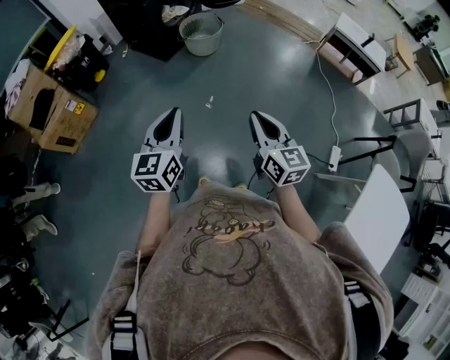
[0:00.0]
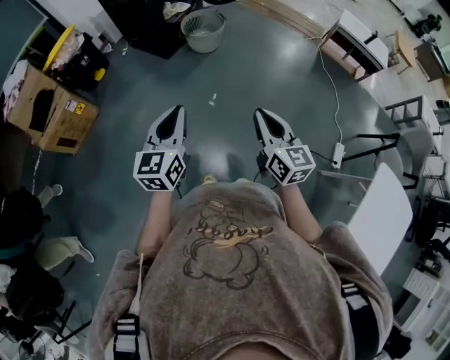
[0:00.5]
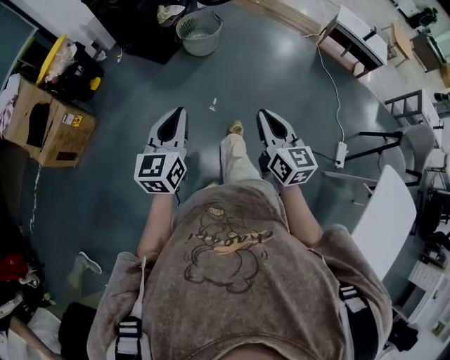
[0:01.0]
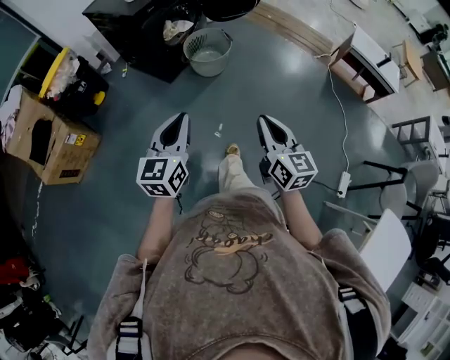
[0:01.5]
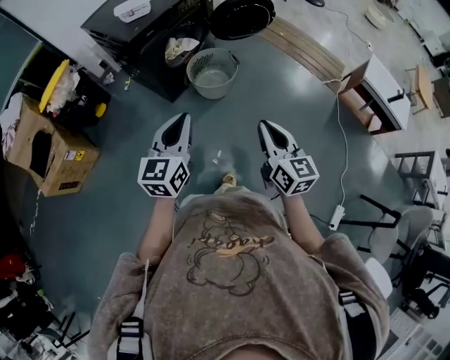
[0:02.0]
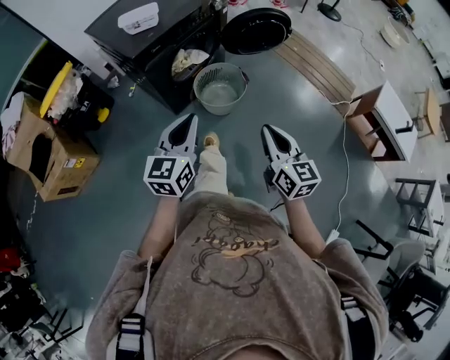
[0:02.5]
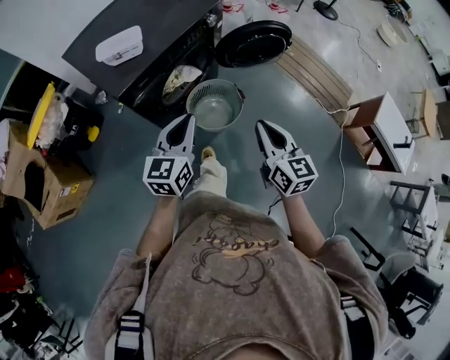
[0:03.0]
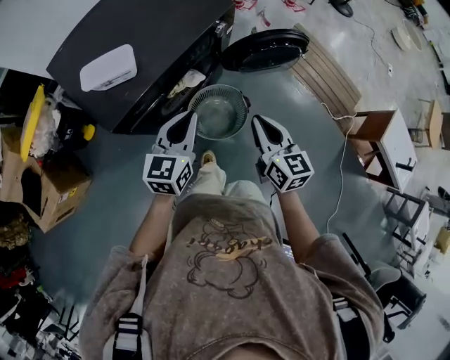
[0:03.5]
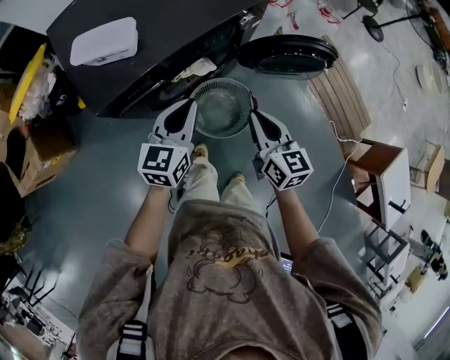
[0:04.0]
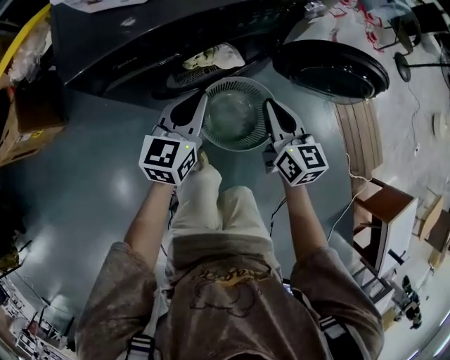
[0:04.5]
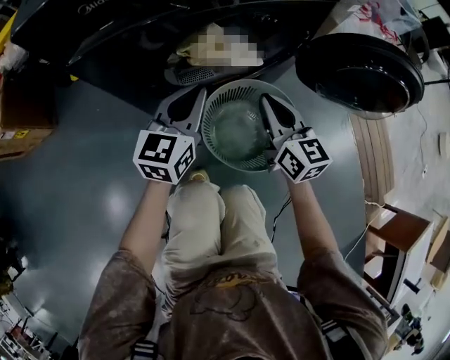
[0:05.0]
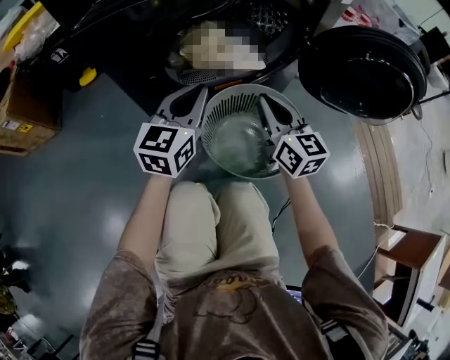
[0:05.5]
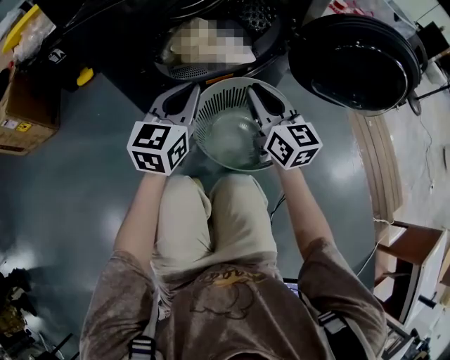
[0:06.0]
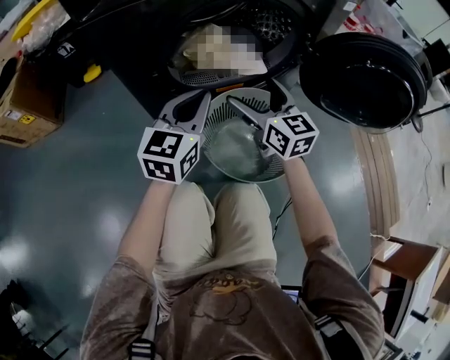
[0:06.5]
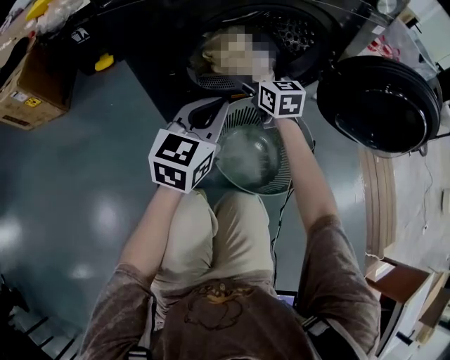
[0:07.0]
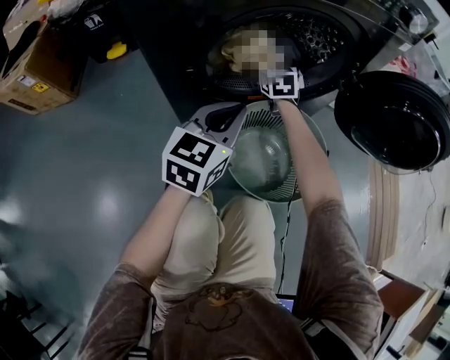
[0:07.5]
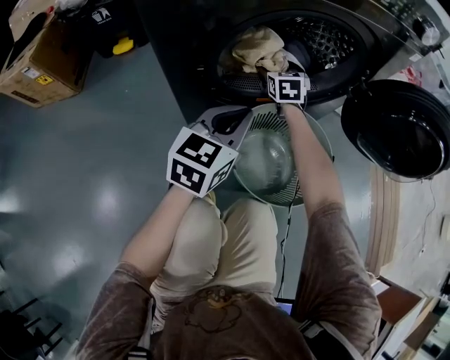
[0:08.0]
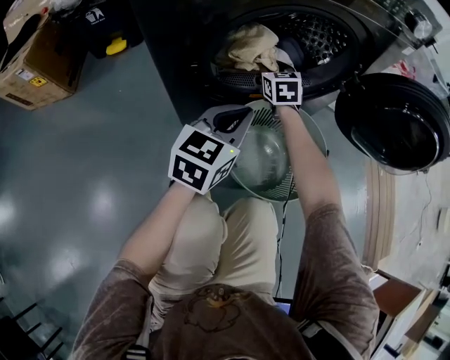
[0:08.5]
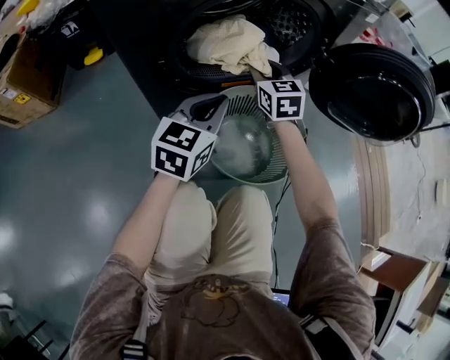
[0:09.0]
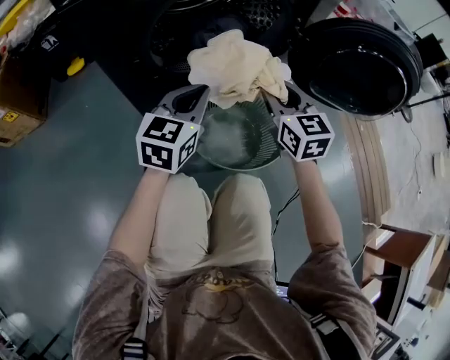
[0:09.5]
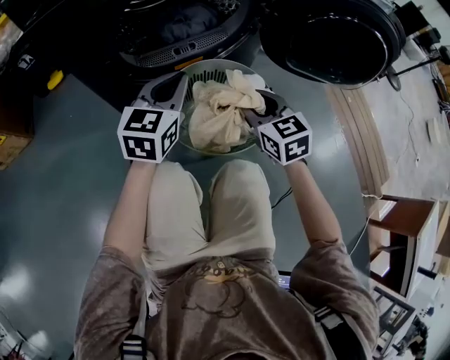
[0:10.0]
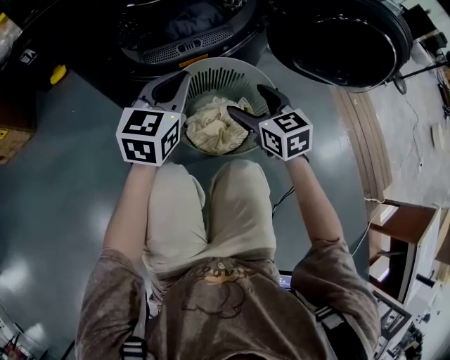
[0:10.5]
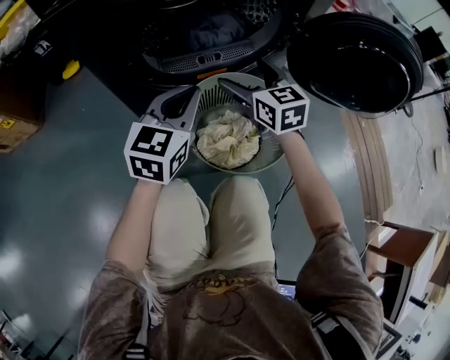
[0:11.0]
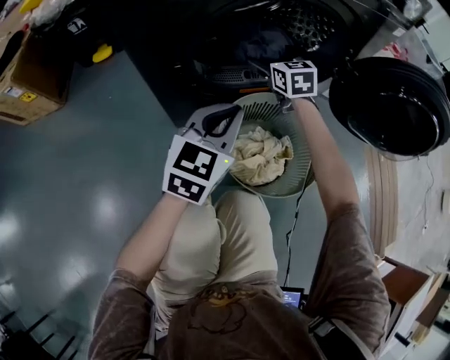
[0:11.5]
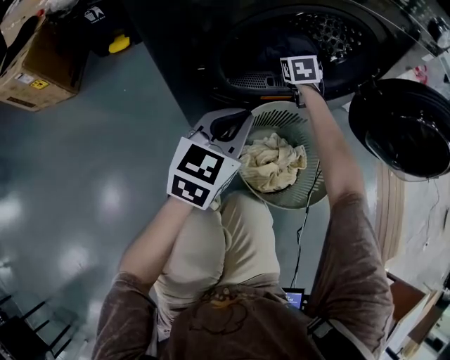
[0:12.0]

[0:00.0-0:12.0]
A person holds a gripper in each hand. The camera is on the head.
0:00.0 to 0:02.0: Both grippers are carried forward, about 40 cm.
0:02.0 to 0:04.0: Both grippers are carried forward, about 50 cm. The right gripper turns by some 20 degrees.
0:04.0 to 0:06.0: Both grippers travel together downward, some 35 cm. The right gripper turns by some 30 degrees.
0:06.0 to 0:08.0: The right gripper is displaced forward and downward by some 30 cm, rotates approximately 30 degrees, and opens.
0:08.0 to 0:10.0: The right gripper travels backward and to the right by about 30 cm, and closes its fingers. Meanwhile the left gripper is displaced to the right by approximately 5 cm.
0:10.0 to 0:12.0: The right gripper shifts about 35 cm forward, and opens up. The left gripper is displaced to the left by about 5 cm.

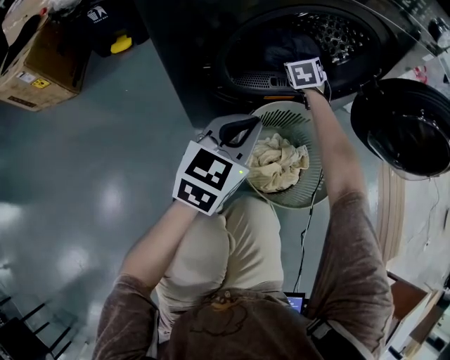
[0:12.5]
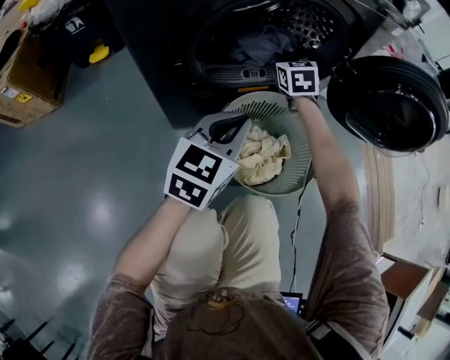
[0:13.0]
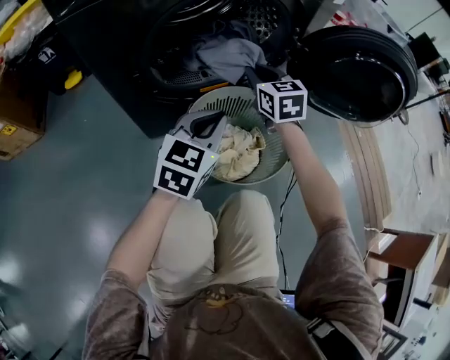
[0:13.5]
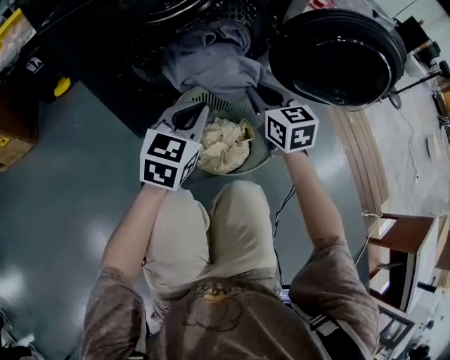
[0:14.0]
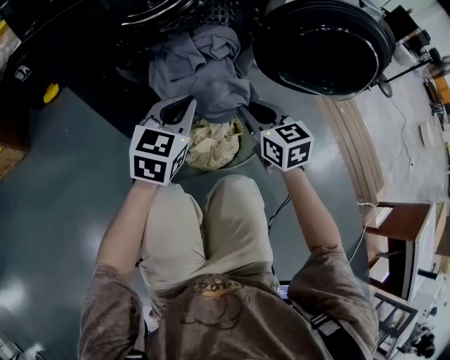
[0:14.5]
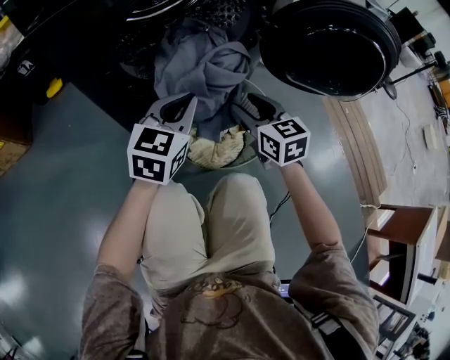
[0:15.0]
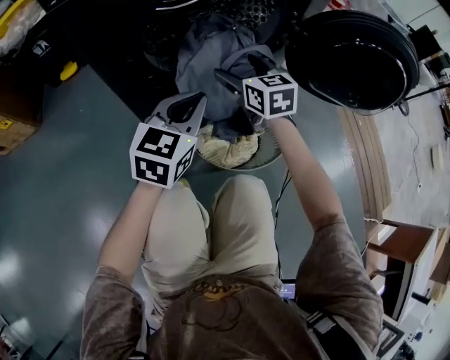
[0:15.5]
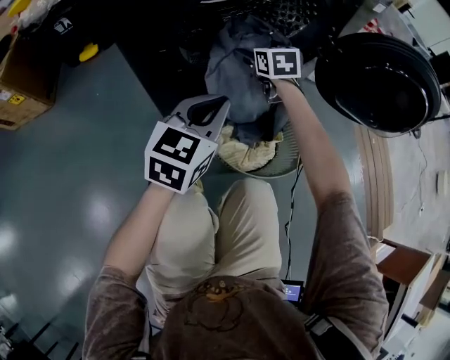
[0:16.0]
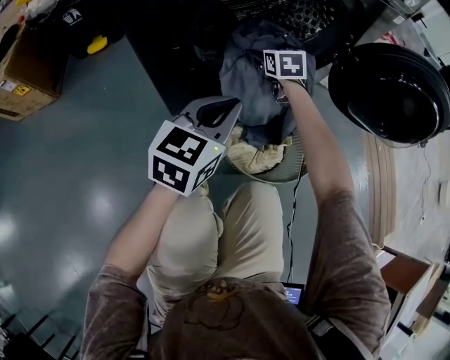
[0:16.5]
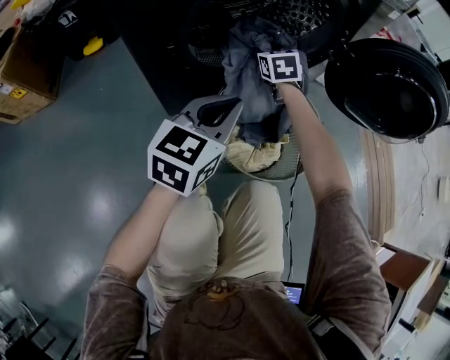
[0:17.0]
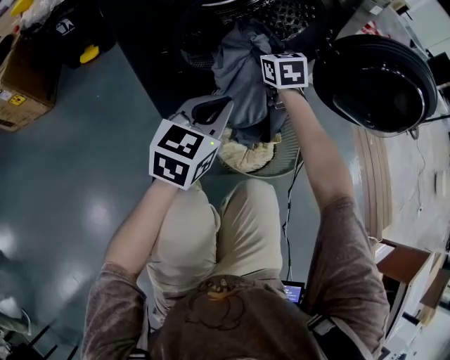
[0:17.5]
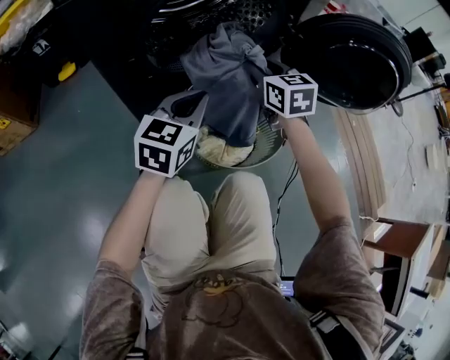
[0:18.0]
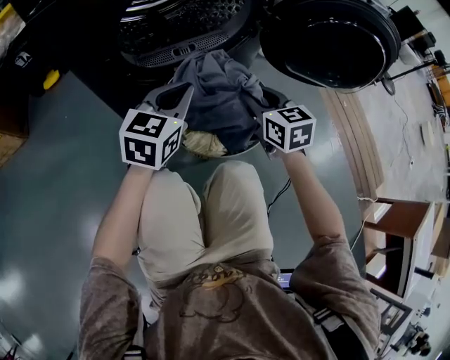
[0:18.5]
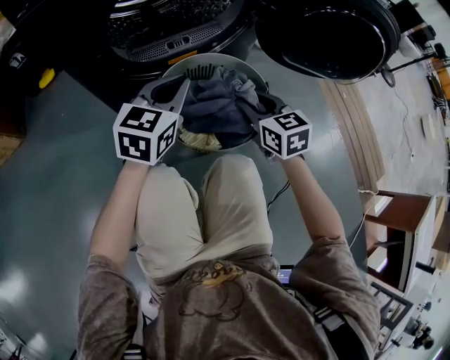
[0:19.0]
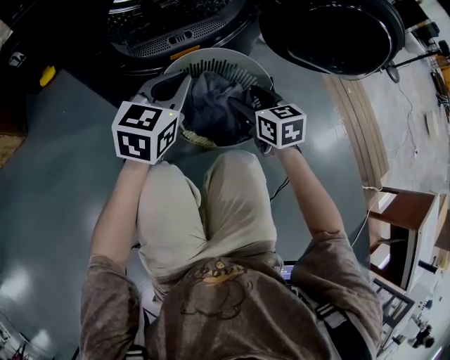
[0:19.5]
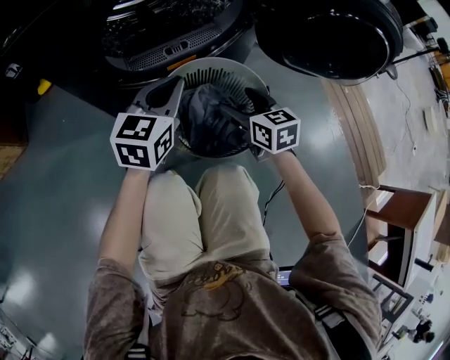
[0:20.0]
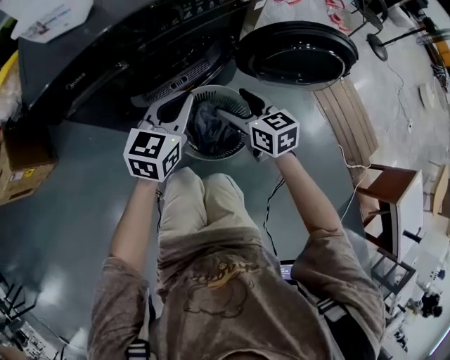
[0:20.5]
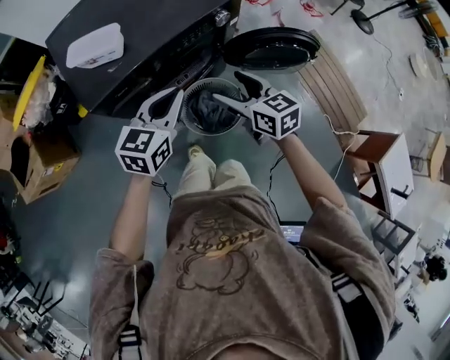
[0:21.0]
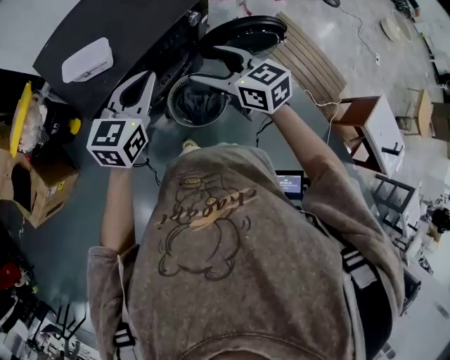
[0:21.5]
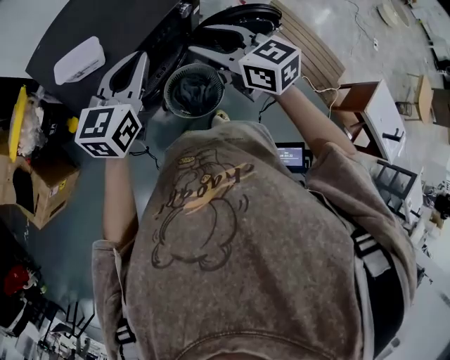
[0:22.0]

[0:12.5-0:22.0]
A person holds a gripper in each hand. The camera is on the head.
0:12.5 to 0:14.5: The left gripper shifts approximately 10 cm to the right; the right gripper goes about 35 cm backward and to the right, and changes its angle by approximately 30 degrees.
0:14.5 to 0:16.5: The right gripper is displaced forward and to the left by about 30 cm, and opens its fingers, while the left gripper travels to the left by roughly 5 cm.
0:16.5 to 0:18.0: The right gripper is displaced backward, upward and to the right by roughly 20 cm, and closes its fingers.
0:18.0 to 0:20.0: The right gripper moves backward and downward, roughly 15 cm, and opens up.
0:20.0 to 0:22.0: The grippers both shift upward by approximately 60 cm.

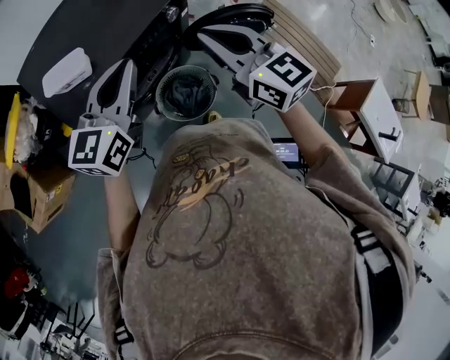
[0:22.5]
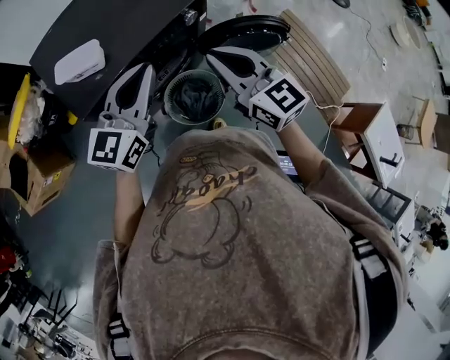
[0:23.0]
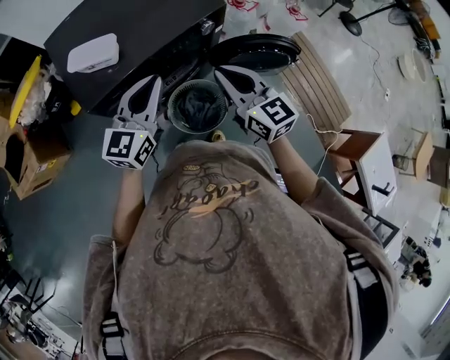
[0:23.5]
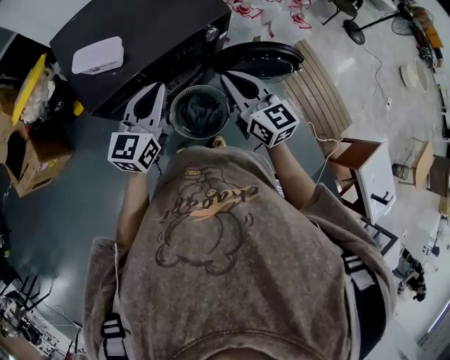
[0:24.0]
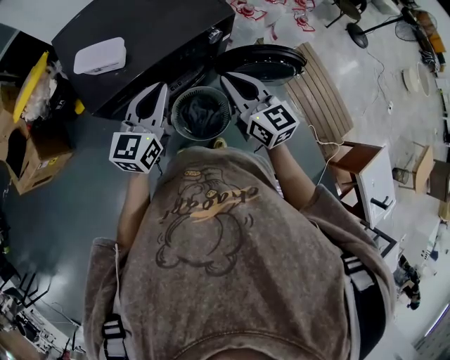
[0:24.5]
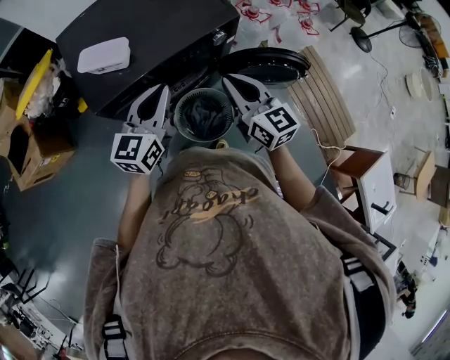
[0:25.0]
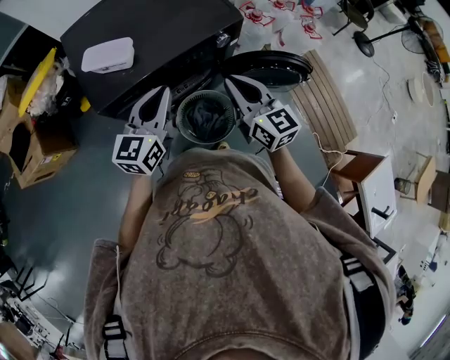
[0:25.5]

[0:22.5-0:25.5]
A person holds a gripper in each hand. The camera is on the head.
0:22.5 to 0:24.0: Both grippers travel together downward, approximately 10 cm.
0:24.0 to 0:25.5: The grippers move only a little.

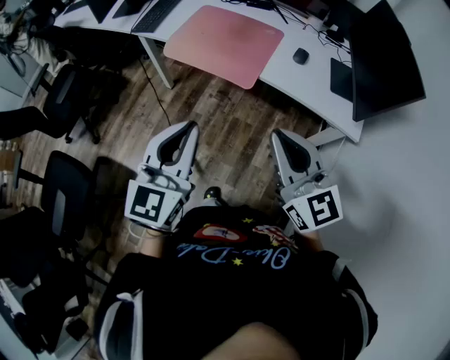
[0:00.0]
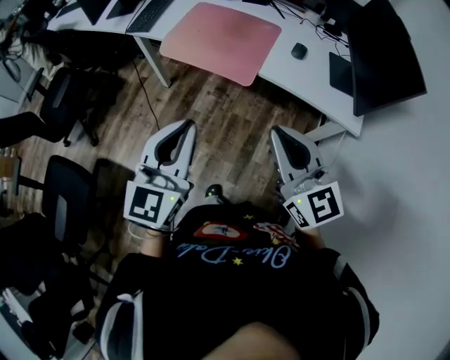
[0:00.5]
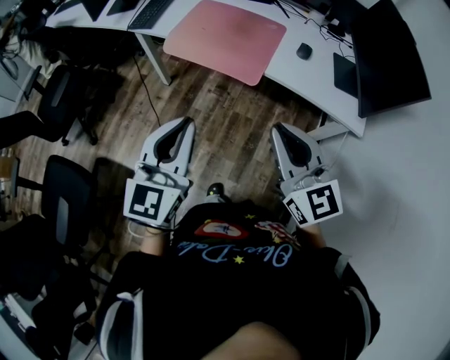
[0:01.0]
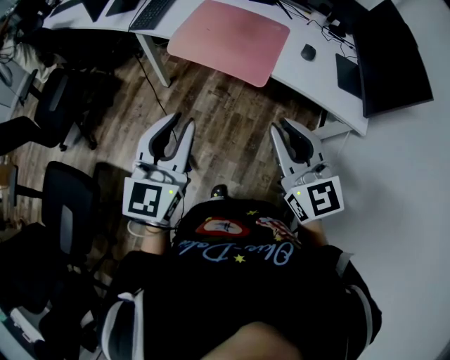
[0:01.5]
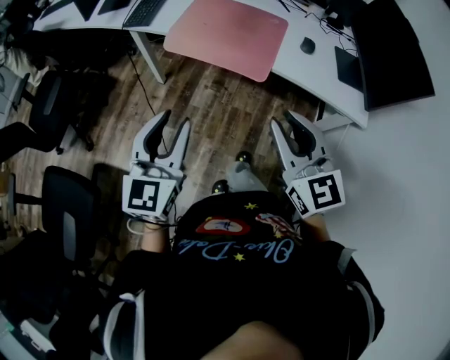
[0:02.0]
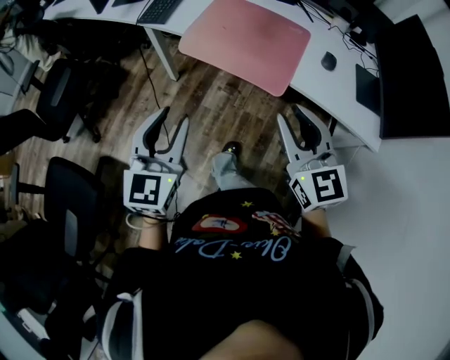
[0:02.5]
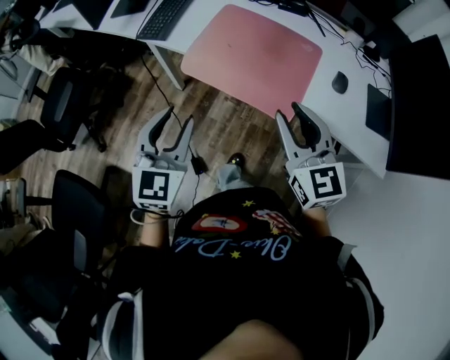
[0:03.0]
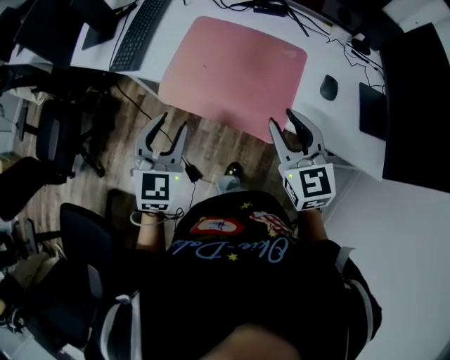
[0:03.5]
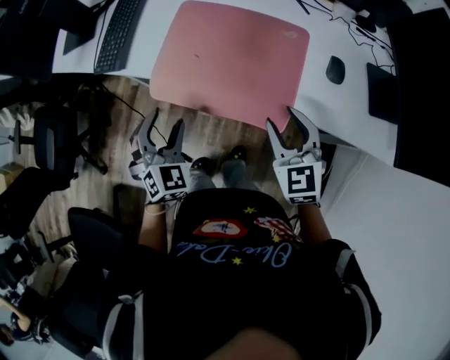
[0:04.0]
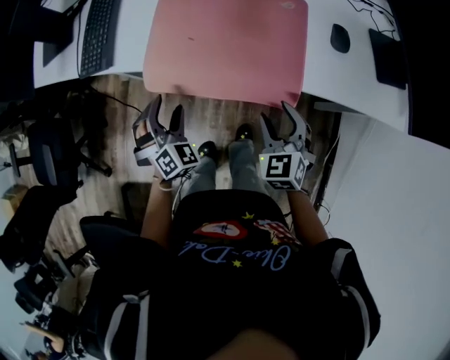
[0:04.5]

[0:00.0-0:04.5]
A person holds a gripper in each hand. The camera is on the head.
0:00.0 to 0:02.0: The grippers both shift to the left and forward by some 10 cm. The left gripper opens.
0:02.0 to 0:04.5: Both grippers travel together forward and downward, some 40 cm. The right gripper rotates roughly 40 degrees, and opens up; the left gripper twists approximately 50 degrees clockwise, seen from behind, and opens up.
